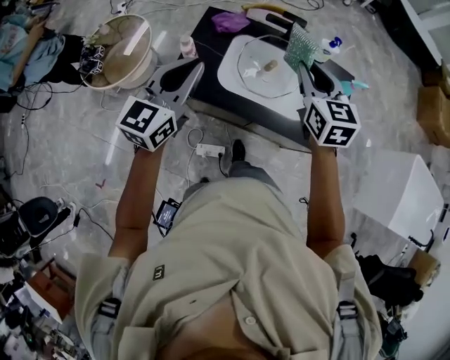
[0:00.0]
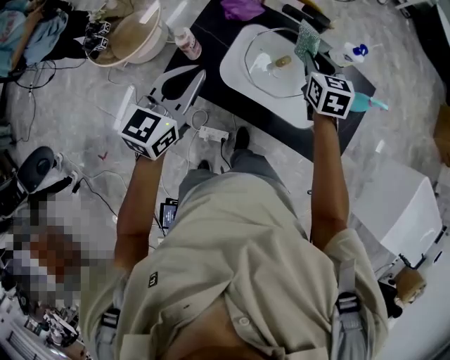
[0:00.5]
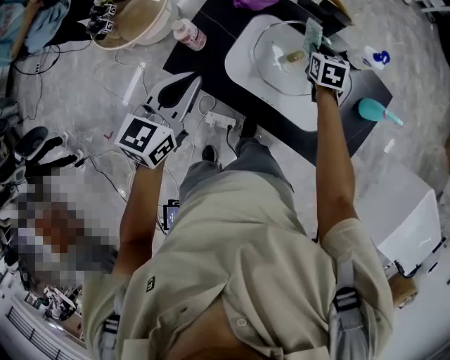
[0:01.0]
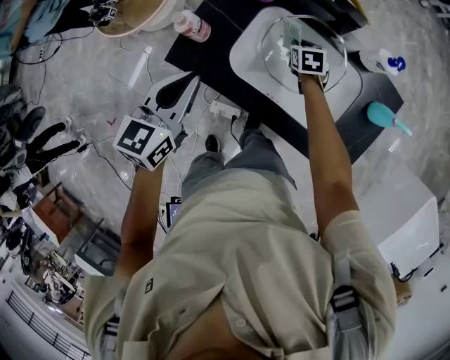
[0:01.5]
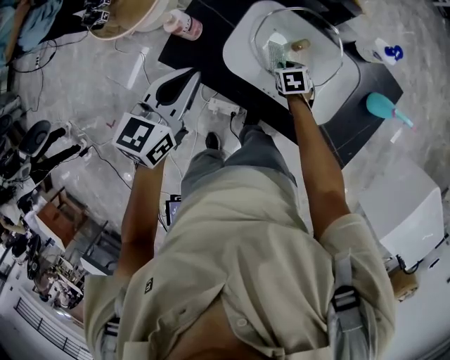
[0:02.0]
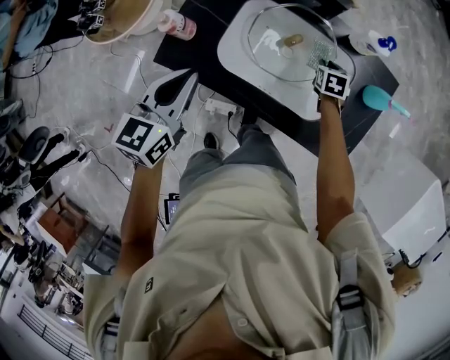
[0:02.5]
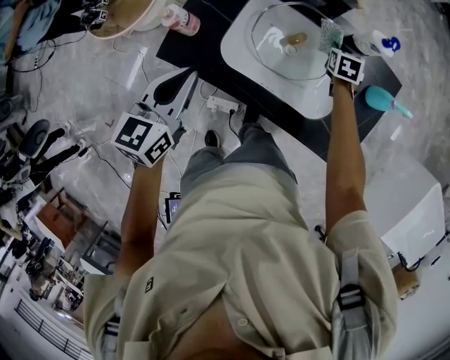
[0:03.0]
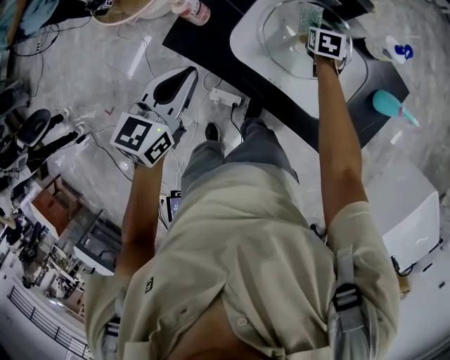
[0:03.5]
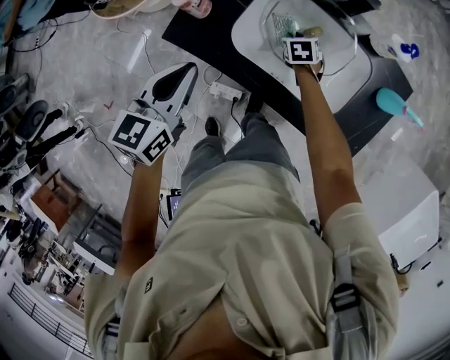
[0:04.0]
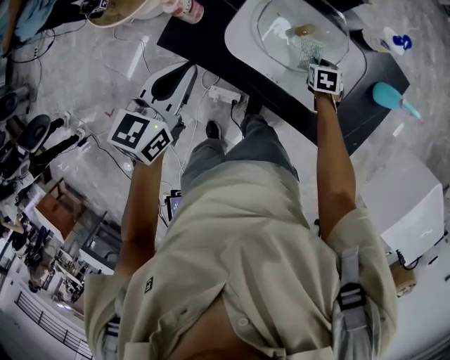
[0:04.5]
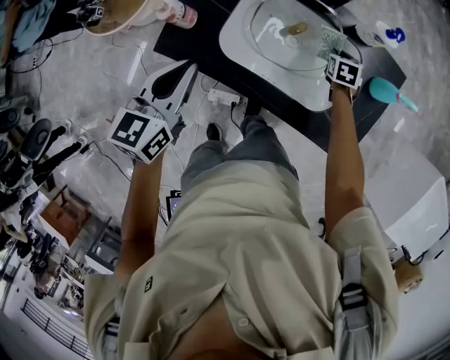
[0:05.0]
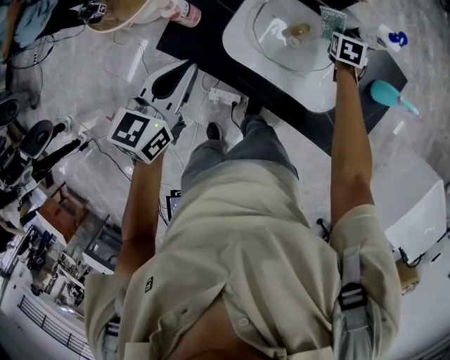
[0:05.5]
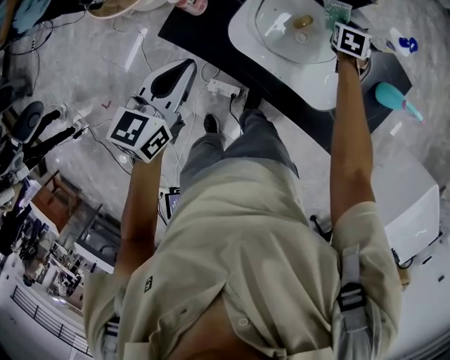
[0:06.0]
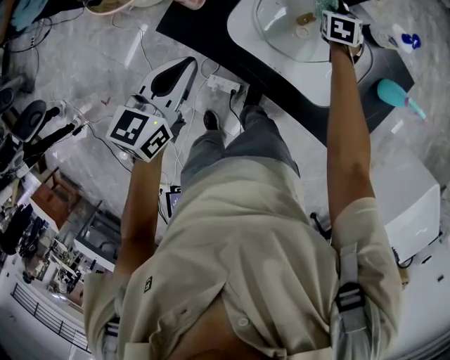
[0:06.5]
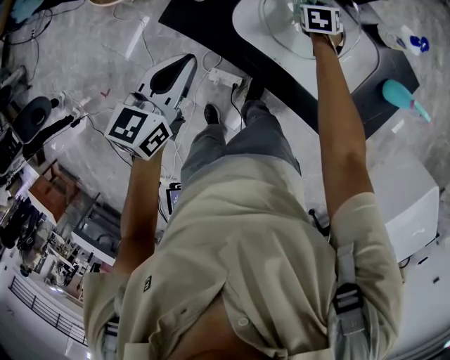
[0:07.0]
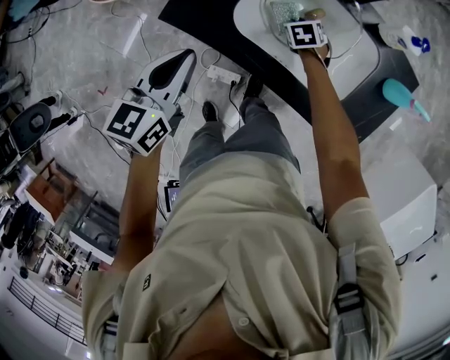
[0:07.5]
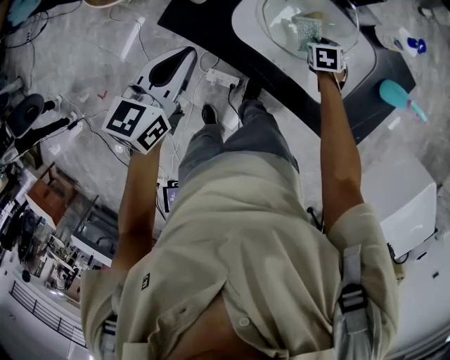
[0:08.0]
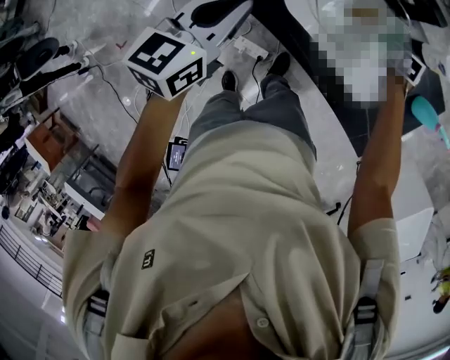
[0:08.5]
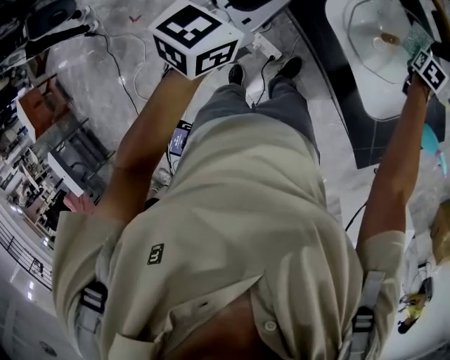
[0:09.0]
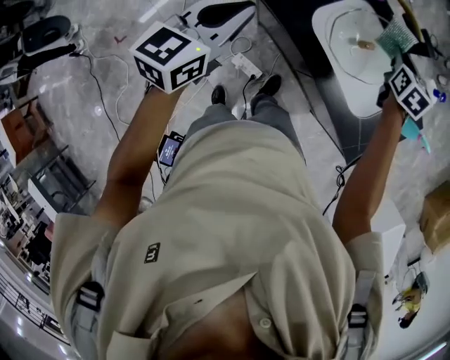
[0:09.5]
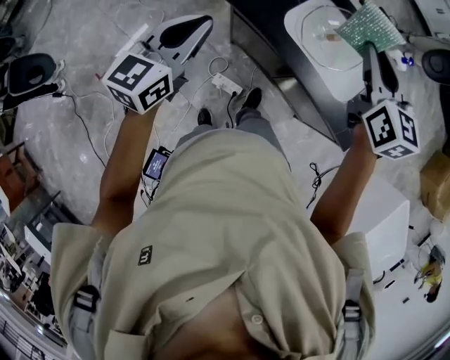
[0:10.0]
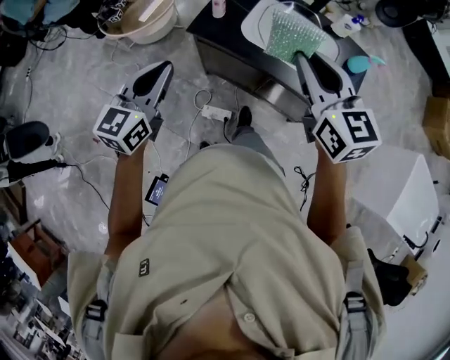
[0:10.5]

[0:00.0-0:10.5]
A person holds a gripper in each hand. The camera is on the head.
0:00.0 to 0:02.0: The left gripper is displaced downward and forward by about 15 cm, and changes its angle by about 30 degrees. The right gripper goes approximately 40 cm downward, and points its fingers approximately 40 degrees further downward.
0:02.0 to 0:04.0: The left gripper ends up about 5 cm from where it was; the right gripper reaches roughly 15 cm to the right, then returns.
0:04.0 to 0:06.5: The right gripper travels forward, to the right and upward by approximately 15 cm.
0:06.5 to 0:08.5: The right gripper is displaced to the right by approximately 10 cm.
0:08.5 to 0:10.5: The right gripper heads upward, backward and to the left, covering approximately 60 cm, and angles its fingers upward, by about 50 degrees. Meanwhile the left gripper goes about 25 cm backward and to the left.

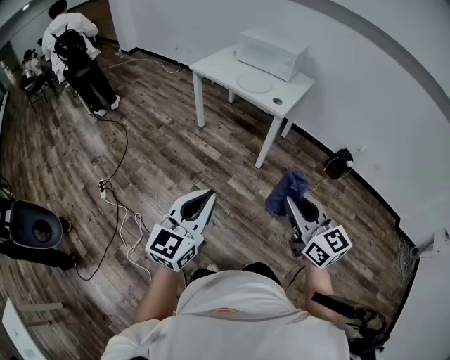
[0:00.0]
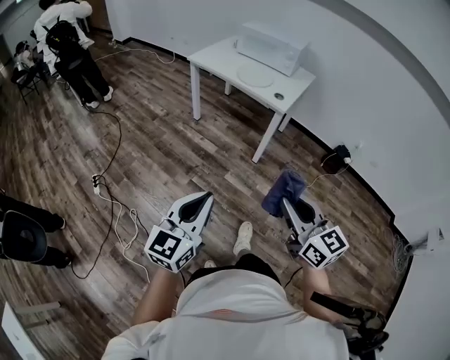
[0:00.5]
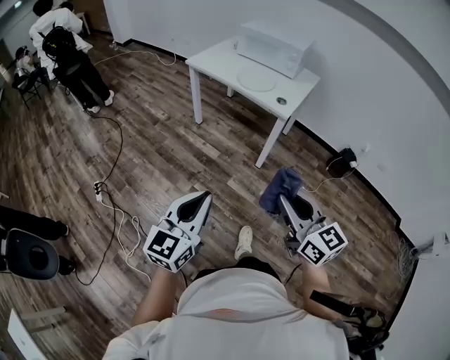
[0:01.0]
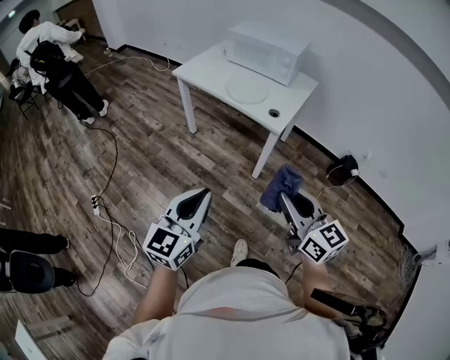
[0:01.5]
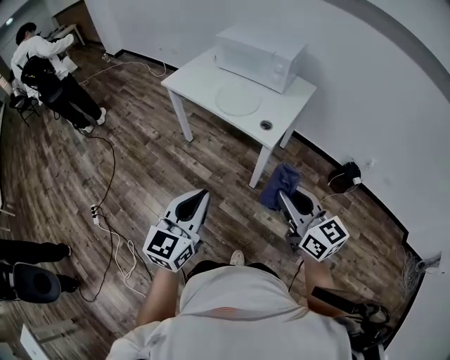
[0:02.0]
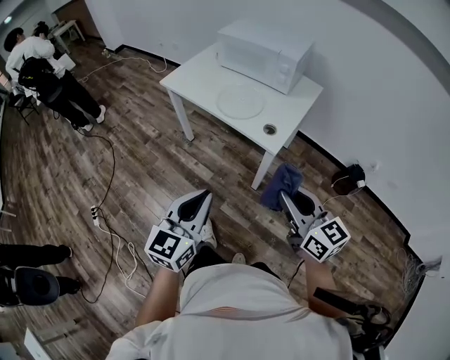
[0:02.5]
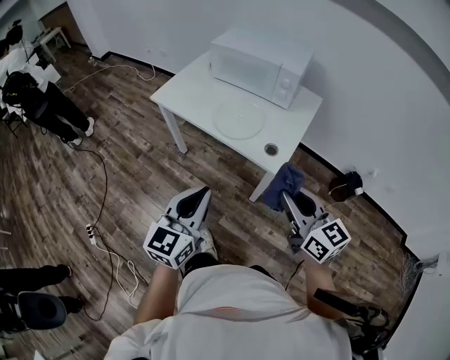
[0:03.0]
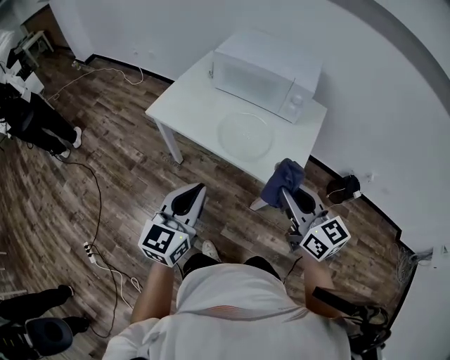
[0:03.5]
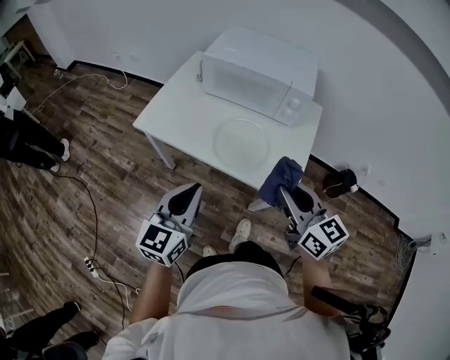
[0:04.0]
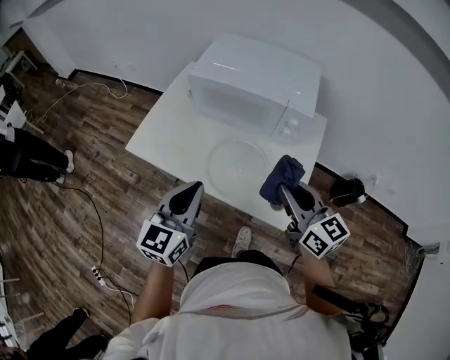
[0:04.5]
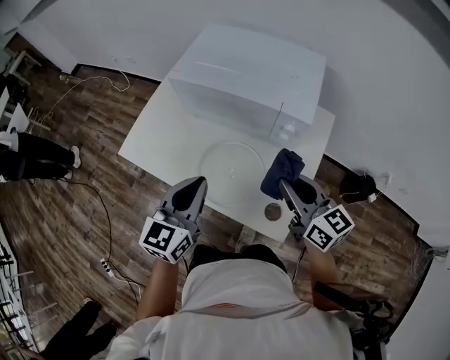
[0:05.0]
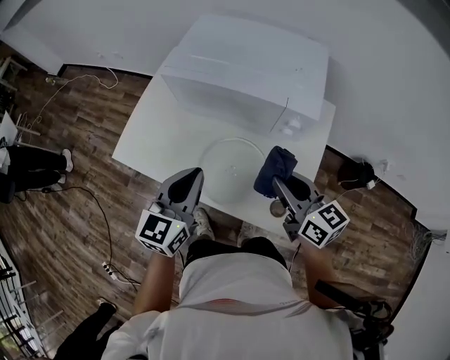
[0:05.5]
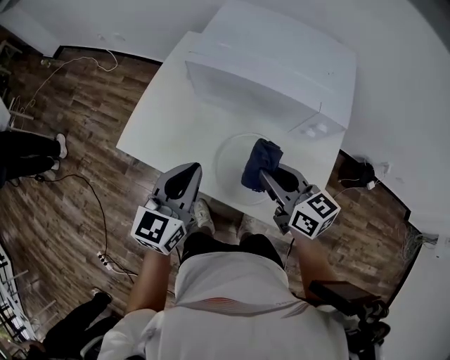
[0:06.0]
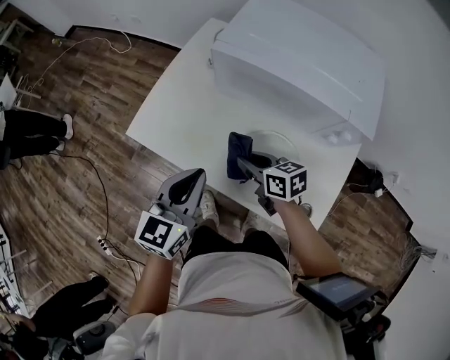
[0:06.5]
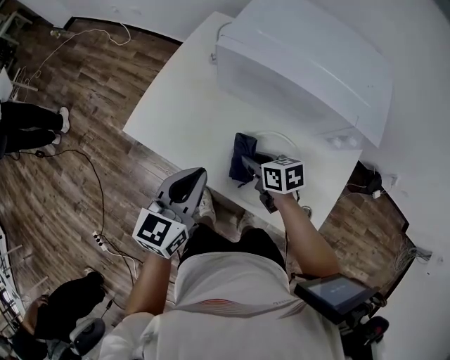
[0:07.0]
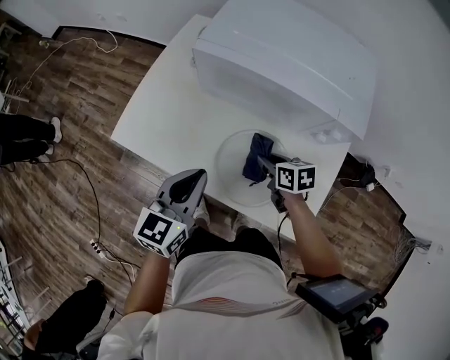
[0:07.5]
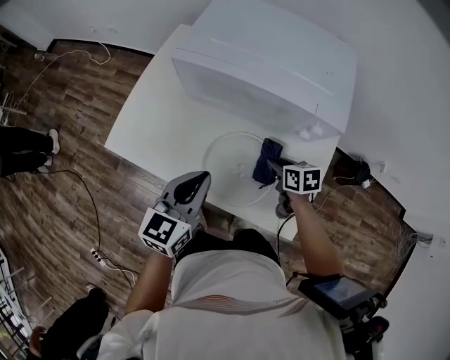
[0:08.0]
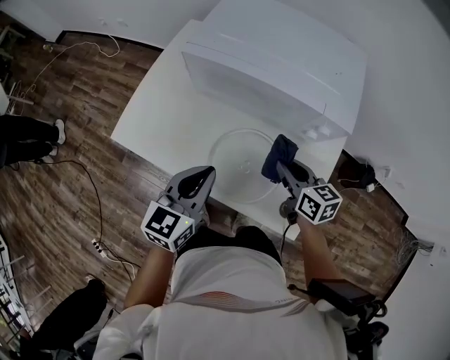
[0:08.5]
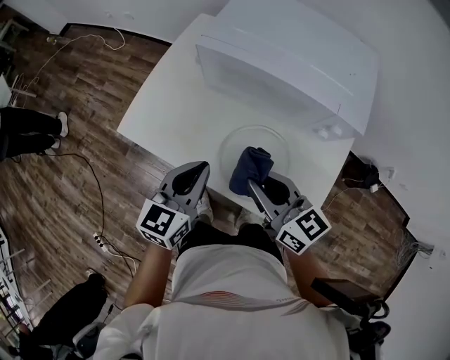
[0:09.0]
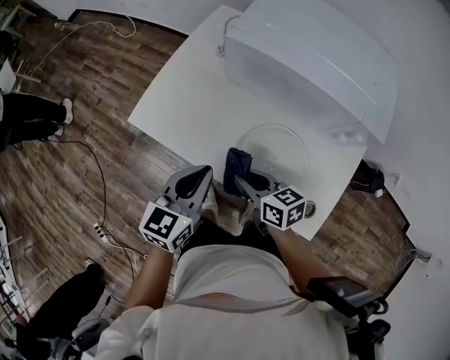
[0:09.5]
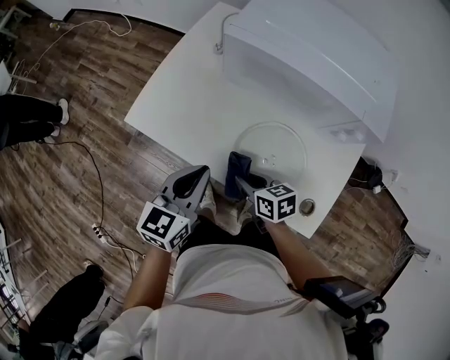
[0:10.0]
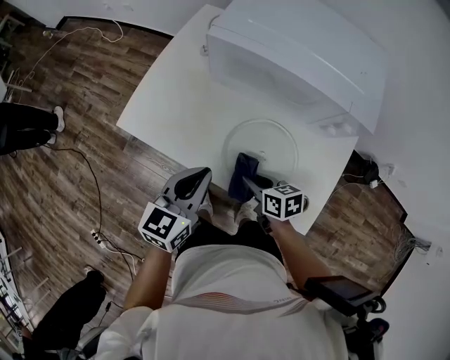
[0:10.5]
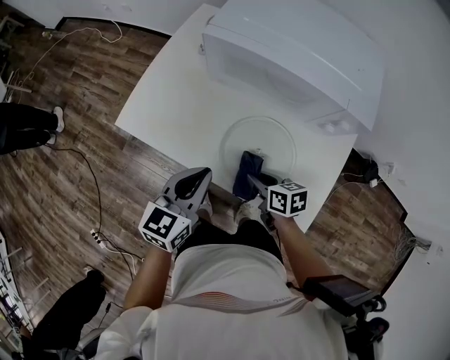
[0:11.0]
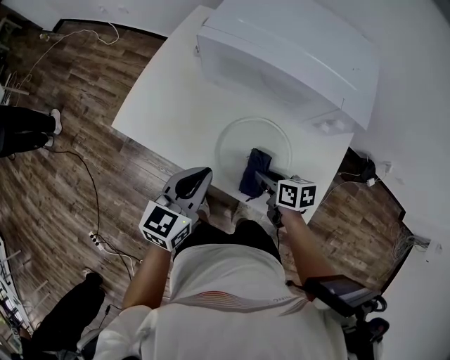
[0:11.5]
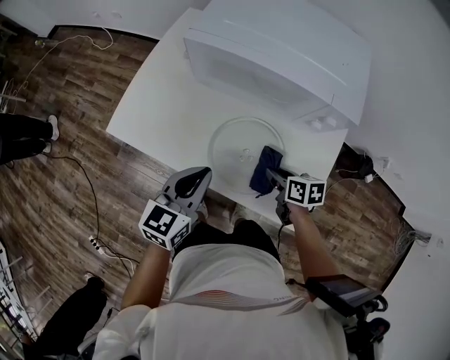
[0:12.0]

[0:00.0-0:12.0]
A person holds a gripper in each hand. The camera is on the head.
0:00.0 to 0:02.0: Both grippers travel together forward, some 35 cm.
0:02.0 to 0:04.0: The grippers both shift forward by approximately 40 cm.
0:04.0 to 0:06.0: The right gripper moves forward and downward, some 25 cm, while the left gripper travels forward by approximately 25 cm.
0:06.0 to 0:08.0: The right gripper travels downward and to the right by approximately 20 cm, and tips its fingers downward by about 30 degrees. The left gripper changes place by roughly 5 cm.
0:08.0 to 0:10.0: The right gripper travels to the left by about 20 cm. The left gripper travels to the left by roughly 10 cm.
0:10.0 to 0:12.0: The right gripper shifts some 20 cm to the right, while the left gripper is displaced to the right by some 10 cm.

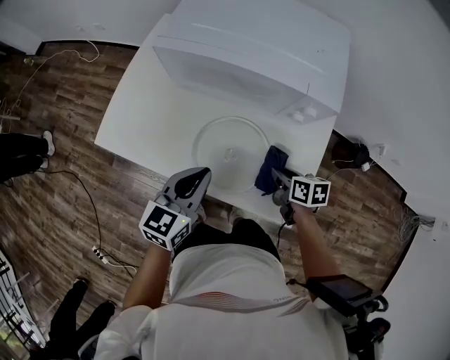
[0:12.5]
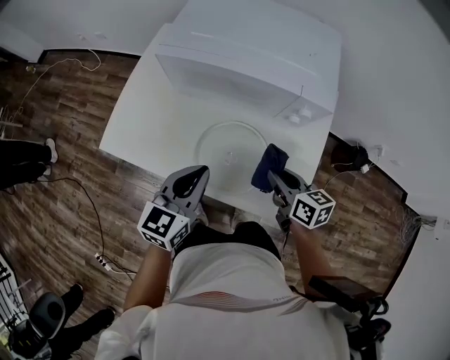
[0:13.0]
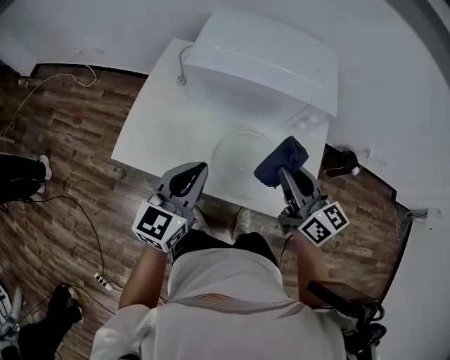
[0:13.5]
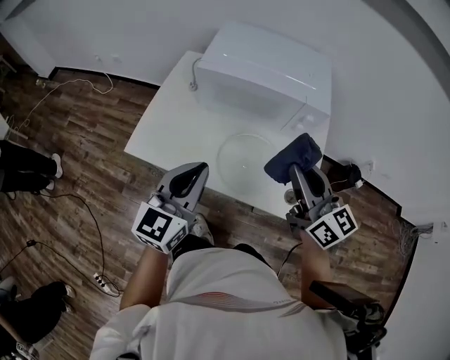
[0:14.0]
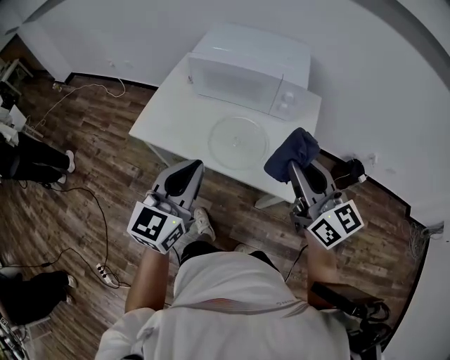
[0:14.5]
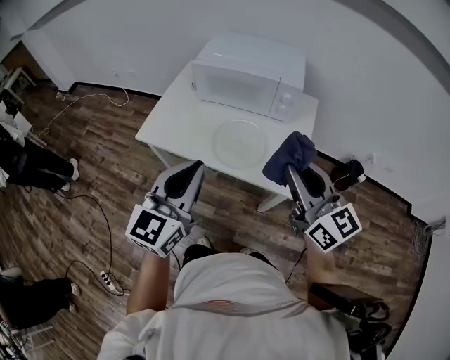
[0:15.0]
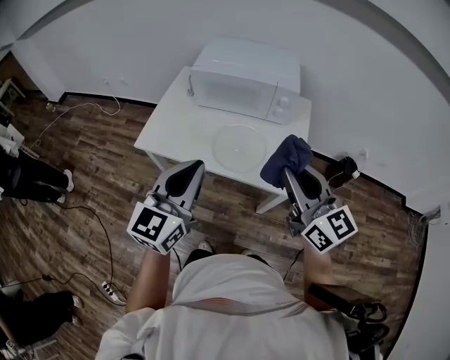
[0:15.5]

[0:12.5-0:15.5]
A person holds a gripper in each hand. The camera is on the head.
0:12.5 to 0:14.0: The left gripper shifts roughly 15 cm upward and to the left. The right gripper shifts about 30 cm upward, and tips its fingers upward by about 50 degrees.
0:14.0 to 0:15.5: The right gripper shifts roughly 20 cm backward; the left gripper moves backward and upward, approximately 20 cm.

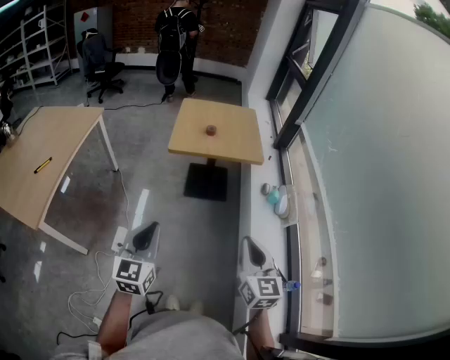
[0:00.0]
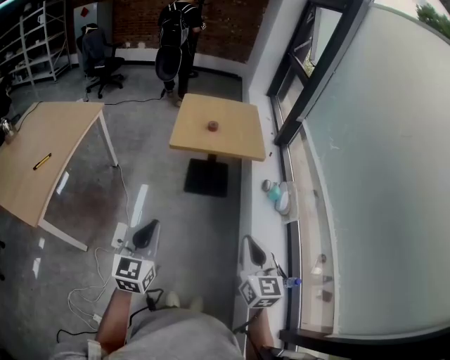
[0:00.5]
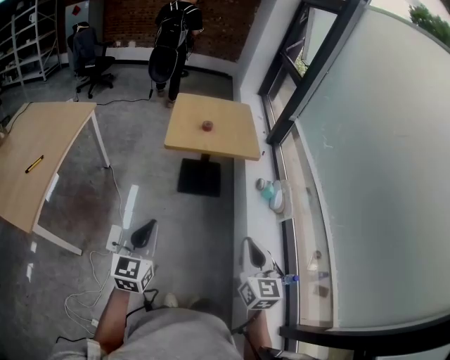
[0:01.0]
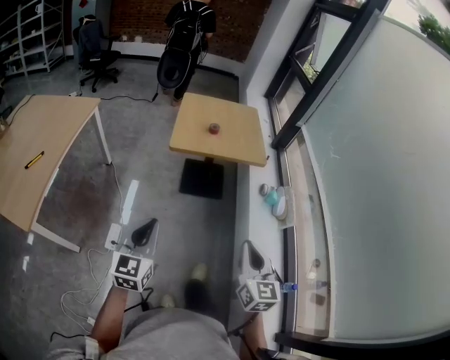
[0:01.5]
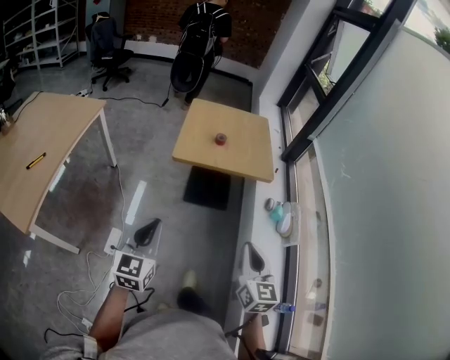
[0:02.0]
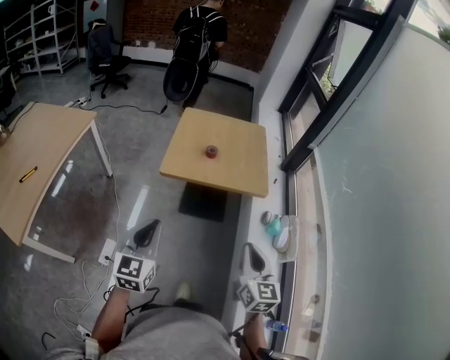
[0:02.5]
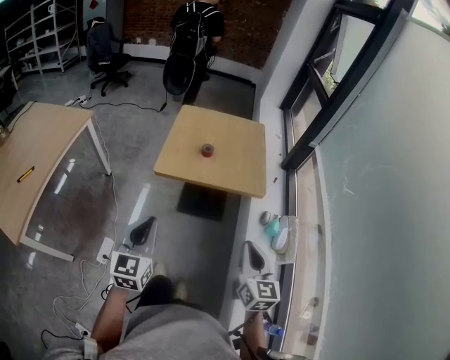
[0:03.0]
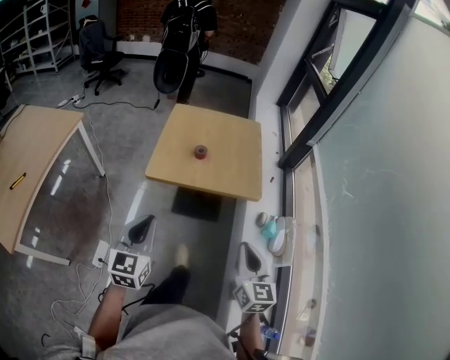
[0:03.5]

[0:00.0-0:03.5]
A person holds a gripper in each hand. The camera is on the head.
0:00.0 to 0:02.0: Both grippers travel together forward, some 10 cm.
0:02.0 to 0:03.5: Both grippers move forward and to the right, roughly 20 cm.
